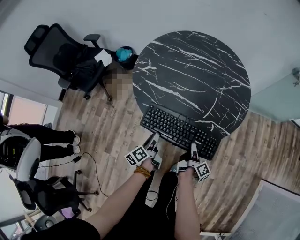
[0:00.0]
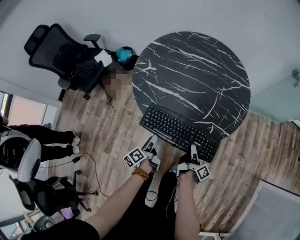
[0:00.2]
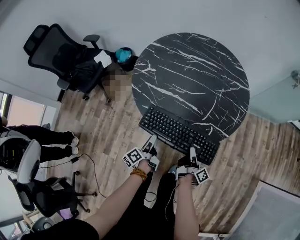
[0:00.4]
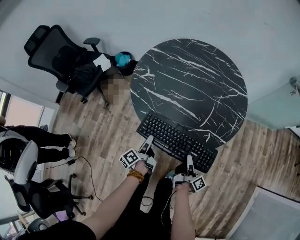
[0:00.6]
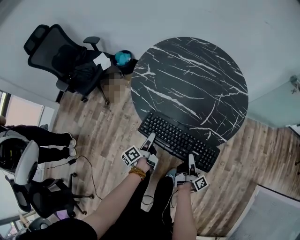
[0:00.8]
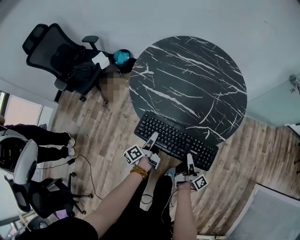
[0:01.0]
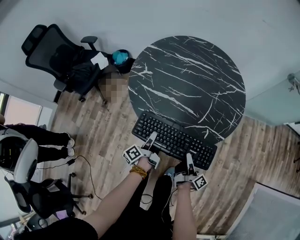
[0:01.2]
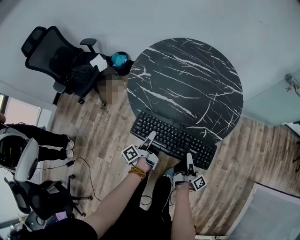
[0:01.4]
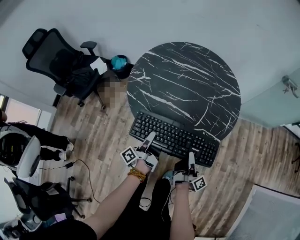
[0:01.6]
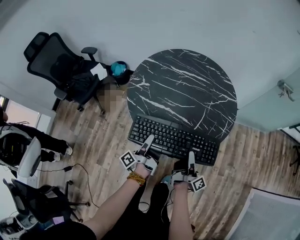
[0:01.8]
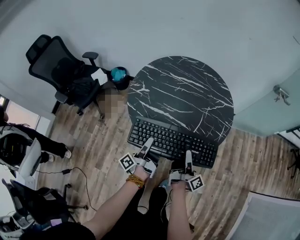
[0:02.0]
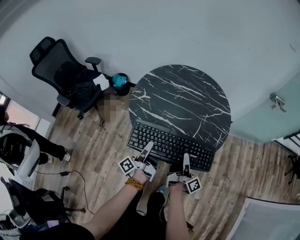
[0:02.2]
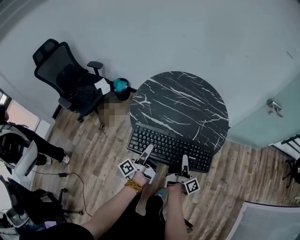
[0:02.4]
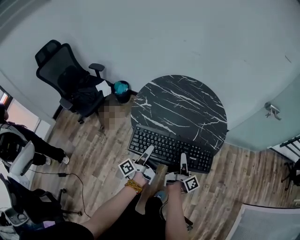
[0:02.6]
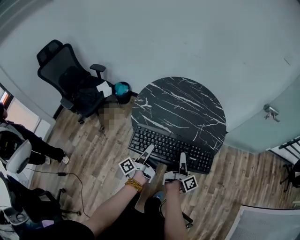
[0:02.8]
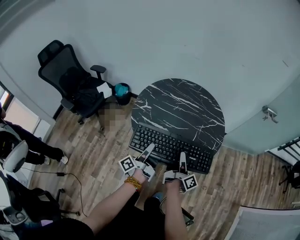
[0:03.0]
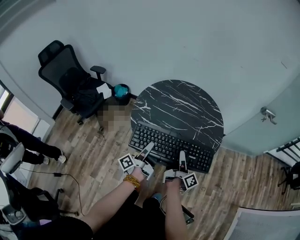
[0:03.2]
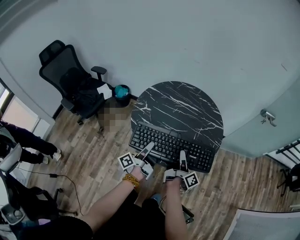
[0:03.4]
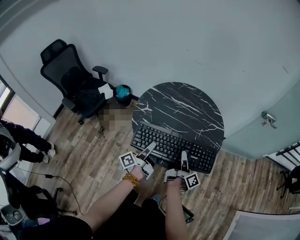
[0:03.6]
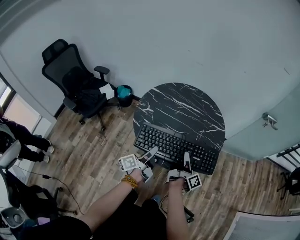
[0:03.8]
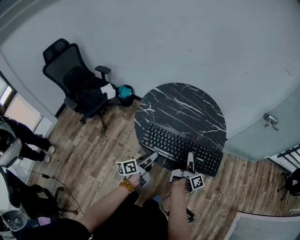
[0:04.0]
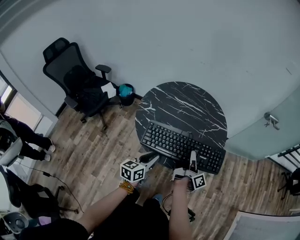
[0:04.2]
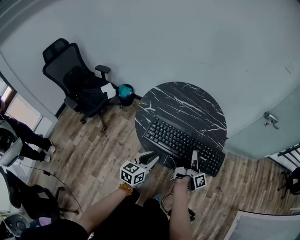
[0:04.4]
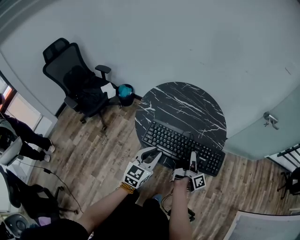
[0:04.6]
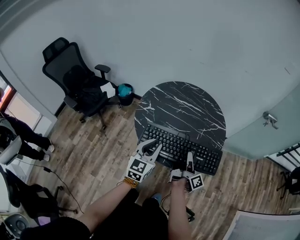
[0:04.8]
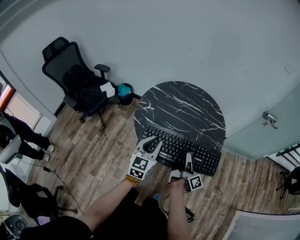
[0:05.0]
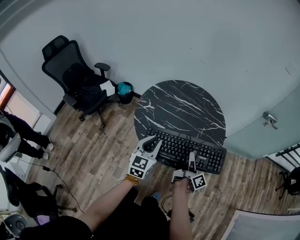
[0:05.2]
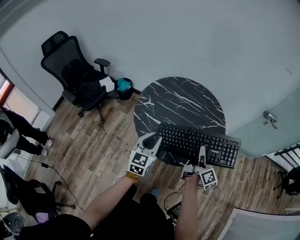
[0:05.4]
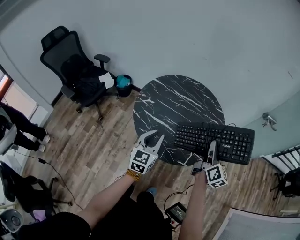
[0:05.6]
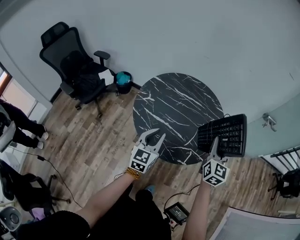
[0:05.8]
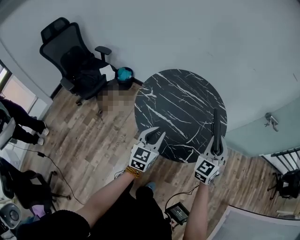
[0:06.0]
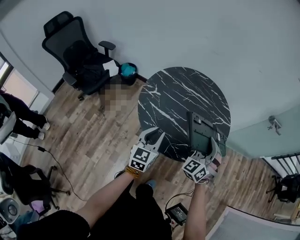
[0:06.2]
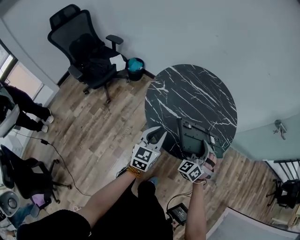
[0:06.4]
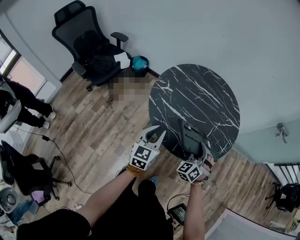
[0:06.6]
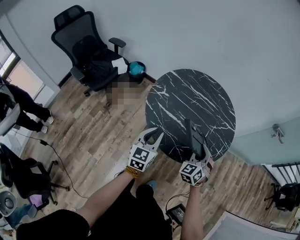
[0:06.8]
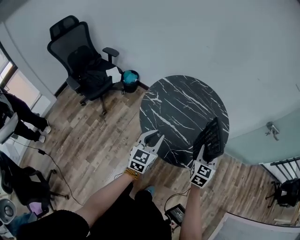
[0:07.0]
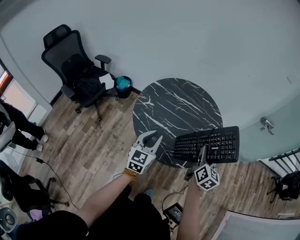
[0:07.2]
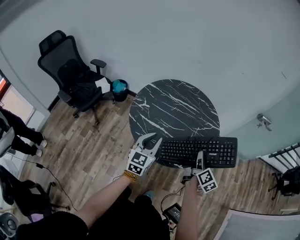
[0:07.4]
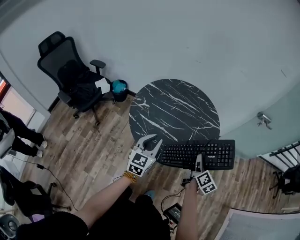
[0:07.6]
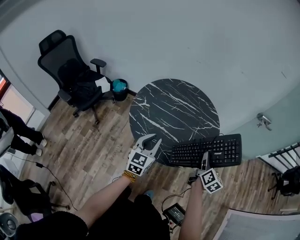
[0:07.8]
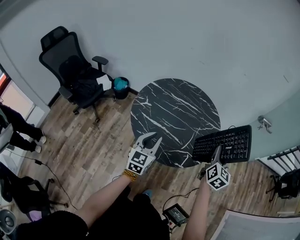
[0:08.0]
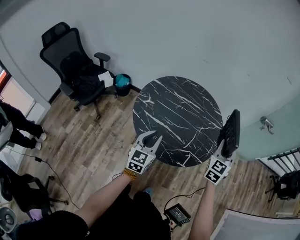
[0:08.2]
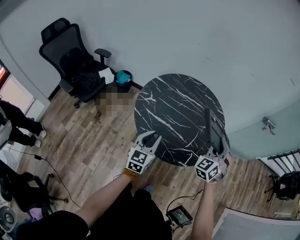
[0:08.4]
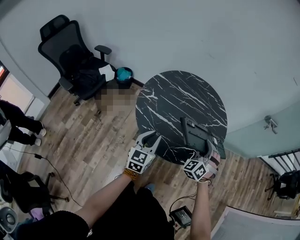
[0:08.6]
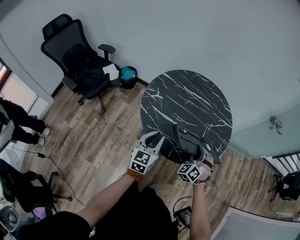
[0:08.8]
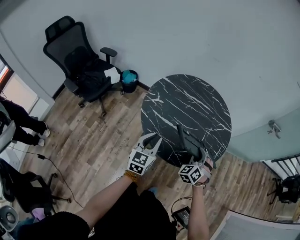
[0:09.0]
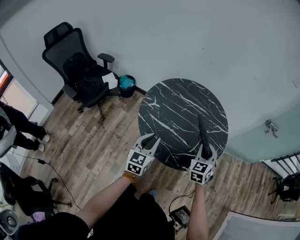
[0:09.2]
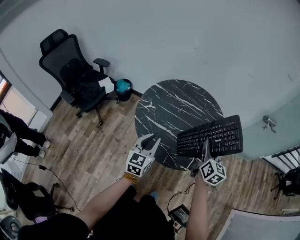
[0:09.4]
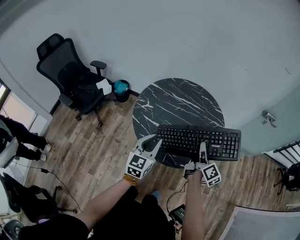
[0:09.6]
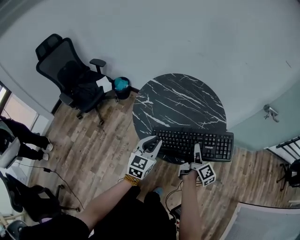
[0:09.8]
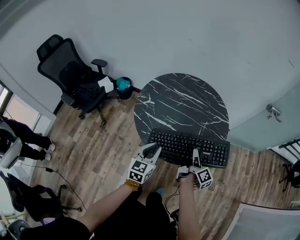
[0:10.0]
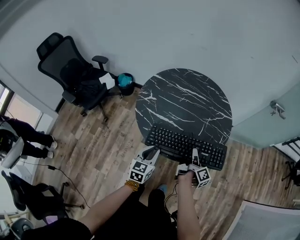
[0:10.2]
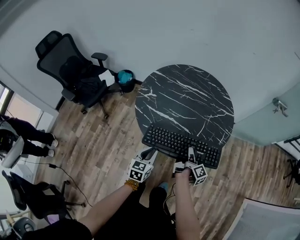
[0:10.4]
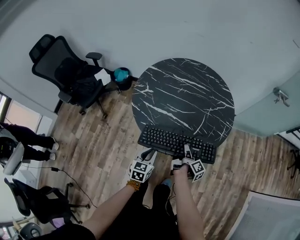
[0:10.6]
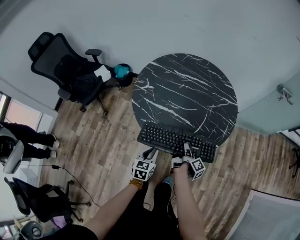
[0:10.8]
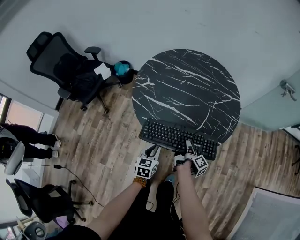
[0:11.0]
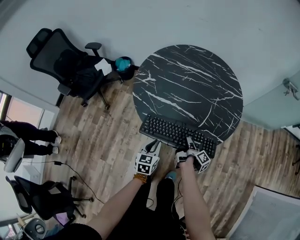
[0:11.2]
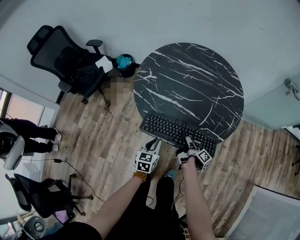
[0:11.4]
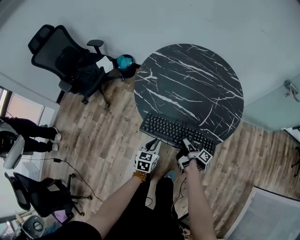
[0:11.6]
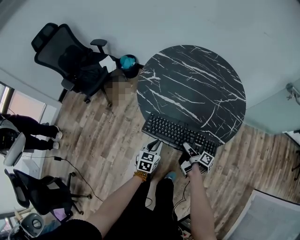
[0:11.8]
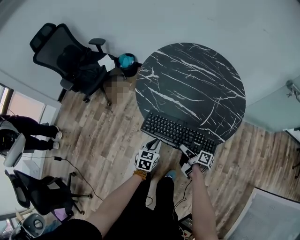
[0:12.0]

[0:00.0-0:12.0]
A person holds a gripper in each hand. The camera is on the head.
0:00.0 to 0:01.6: The grippers both shift upward by roughly 10 cm. The right gripper rotates roughly 30 degrees. The left gripper rotates some 40 degrees, and closes.
0:01.6 to 0:03.0: The left gripper travels upward by some 15 cm; the right gripper goes roughly 15 cm upward and forward.
0:03.0 to 0:04.4: The left gripper ends up roughly 5 cm from where it was, and twists approximately 60 degrees clockwise, seen from behind.
0:04.4 to 0:06.0: The left gripper moves forward, about 5 cm, and changes its angle by roughly 20 degrees. Meanwhile the right gripper goes about 15 cm upward, and rolls counterclockwise, seen from behind, by roughly 130 degrees.
0:06.0 to 0:07.6: The left gripper goes to the left and returns, some 5 cm each way, while the right gripper goes up and down, some 15 cm each way, reversing 2 times, and rotates around the line of its fingers by about 80 degrees, clockwise from behind.
0:07.6 to 0:09.0: The right gripper shifts about 10 cm to the left, moves roughly 15 cm upward and comes back, and rotates around the line of its fingers by roughly 100 degrees, counterclockwise from behind. The left gripper is displaced to the left and downward by approximately 10 cm.
0:09.0 to 0:10.4: The right gripper shifts about 10 cm downward, and rotates around the line of its fingers by some 150 degrees, clockwise from behind; the left gripper goes approximately 15 cm downward, to the right and backward.
0:10.4 to 0:12.0: The grippers both shift downward by about 10 cm. The right gripper turns by about 50 degrees.

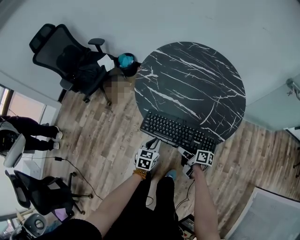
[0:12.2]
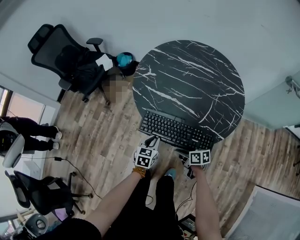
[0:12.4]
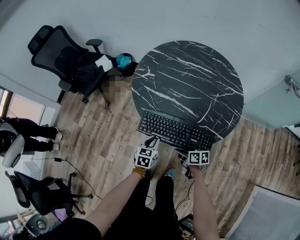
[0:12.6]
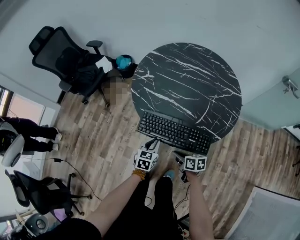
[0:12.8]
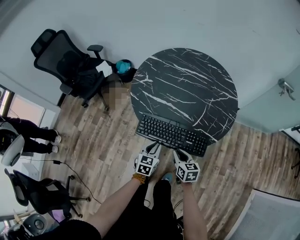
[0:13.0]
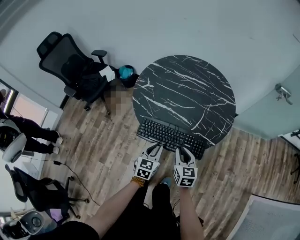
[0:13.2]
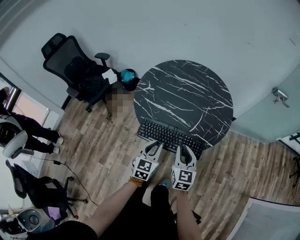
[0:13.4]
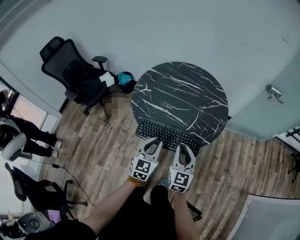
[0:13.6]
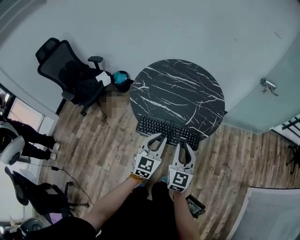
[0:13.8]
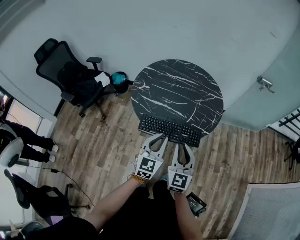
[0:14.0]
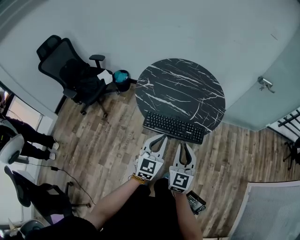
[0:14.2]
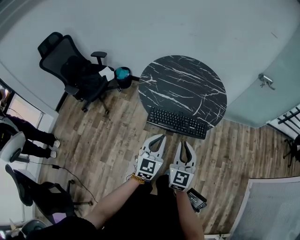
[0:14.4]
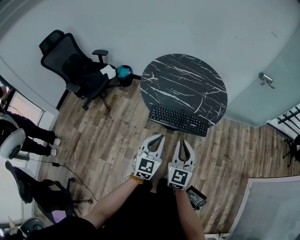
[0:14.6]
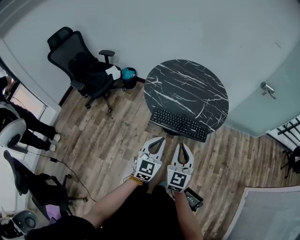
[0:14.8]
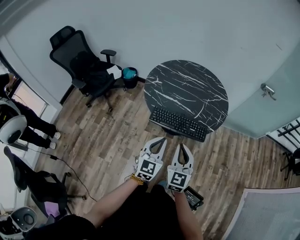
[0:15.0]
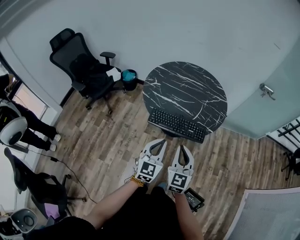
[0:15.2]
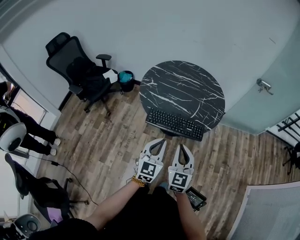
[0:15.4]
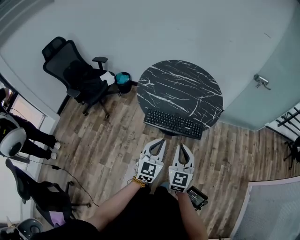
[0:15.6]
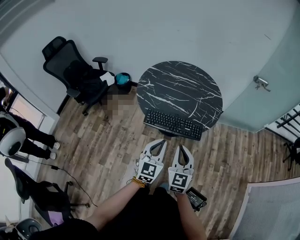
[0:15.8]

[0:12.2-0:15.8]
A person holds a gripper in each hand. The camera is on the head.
0:12.2 to 0:14.0: Both grippers travel together upward, about 30 cm. The left gripper angles its fingers upward, by about 30 degrees; the right gripper turns by about 90 degrees.
0:14.0 to 0:15.8: Both grippers move backward, approximately 10 cm.

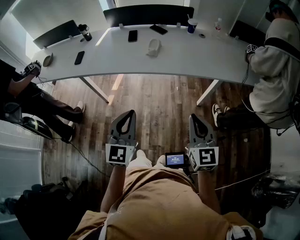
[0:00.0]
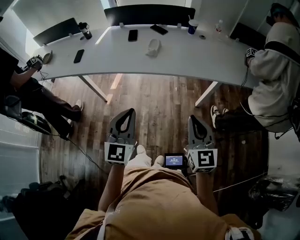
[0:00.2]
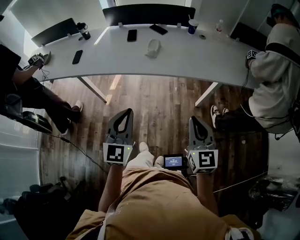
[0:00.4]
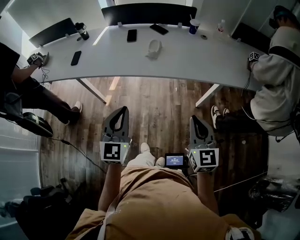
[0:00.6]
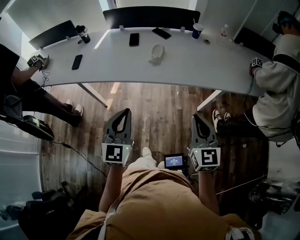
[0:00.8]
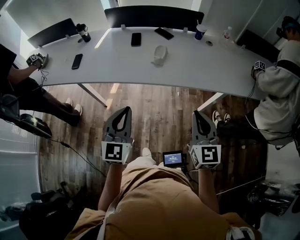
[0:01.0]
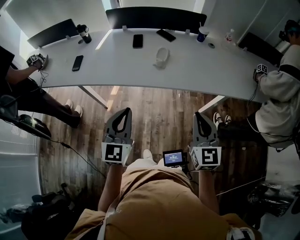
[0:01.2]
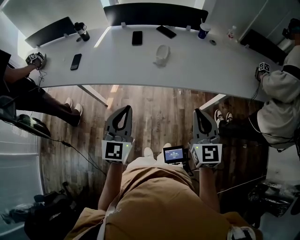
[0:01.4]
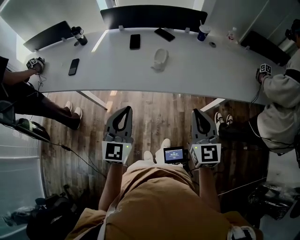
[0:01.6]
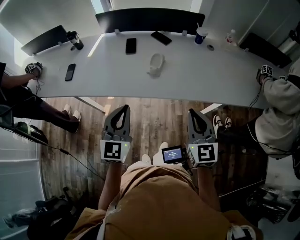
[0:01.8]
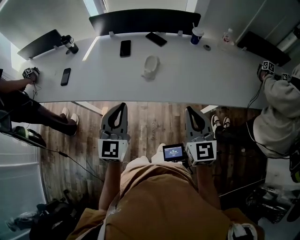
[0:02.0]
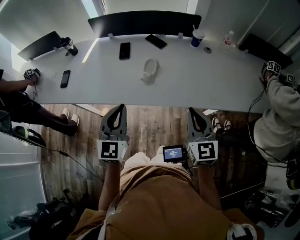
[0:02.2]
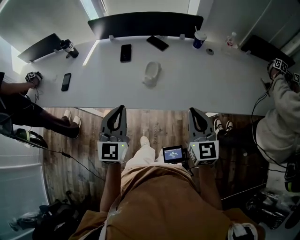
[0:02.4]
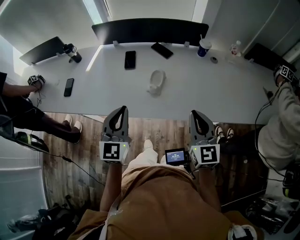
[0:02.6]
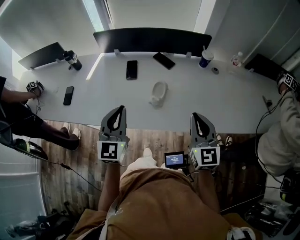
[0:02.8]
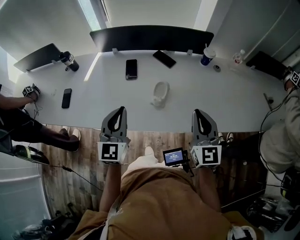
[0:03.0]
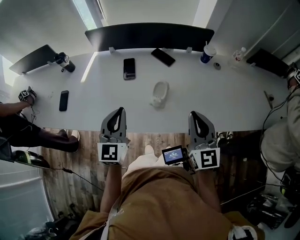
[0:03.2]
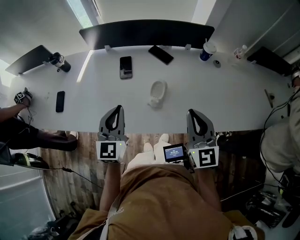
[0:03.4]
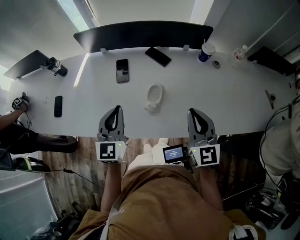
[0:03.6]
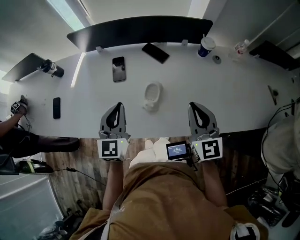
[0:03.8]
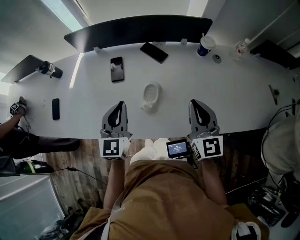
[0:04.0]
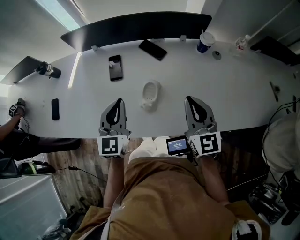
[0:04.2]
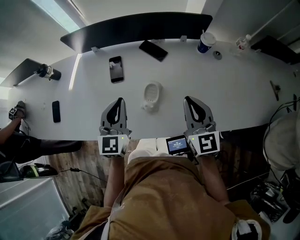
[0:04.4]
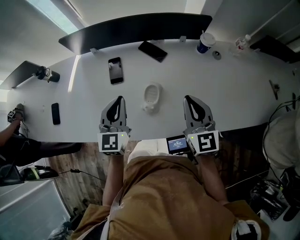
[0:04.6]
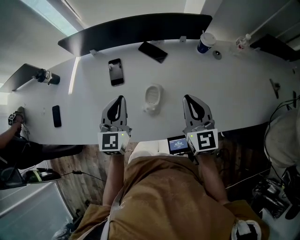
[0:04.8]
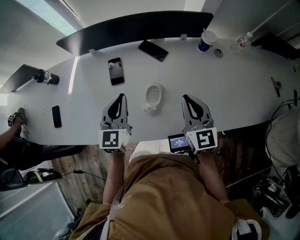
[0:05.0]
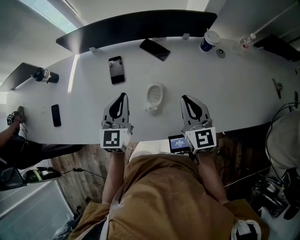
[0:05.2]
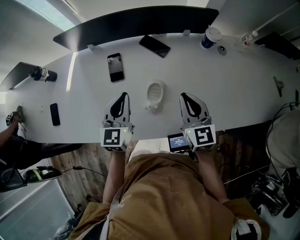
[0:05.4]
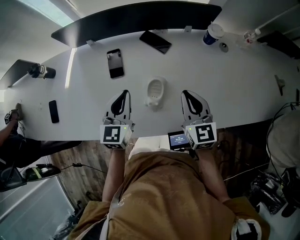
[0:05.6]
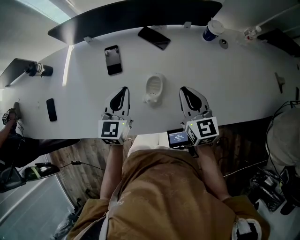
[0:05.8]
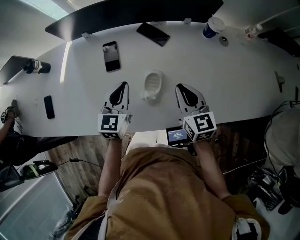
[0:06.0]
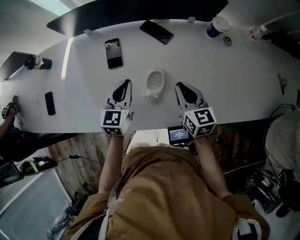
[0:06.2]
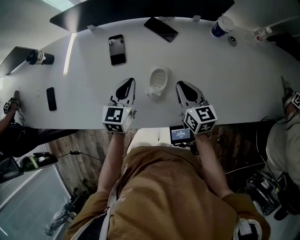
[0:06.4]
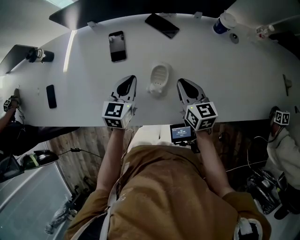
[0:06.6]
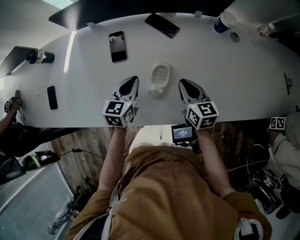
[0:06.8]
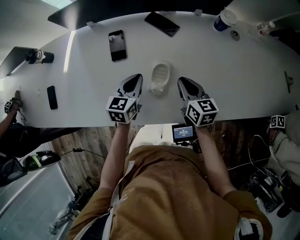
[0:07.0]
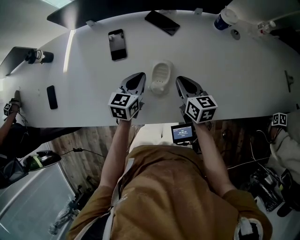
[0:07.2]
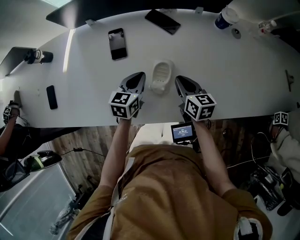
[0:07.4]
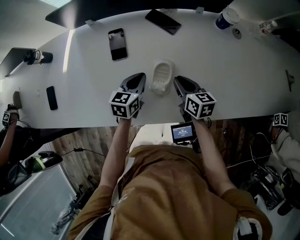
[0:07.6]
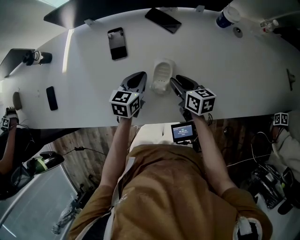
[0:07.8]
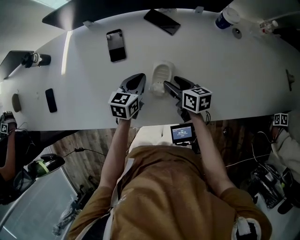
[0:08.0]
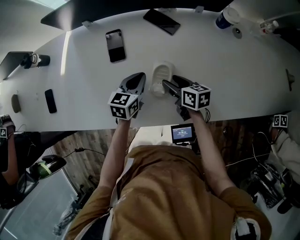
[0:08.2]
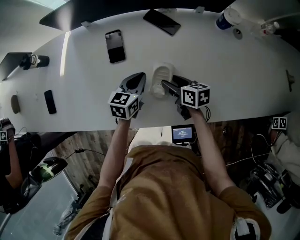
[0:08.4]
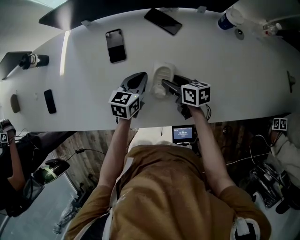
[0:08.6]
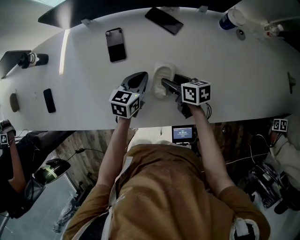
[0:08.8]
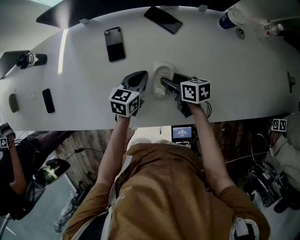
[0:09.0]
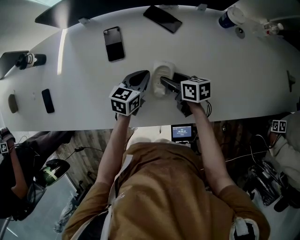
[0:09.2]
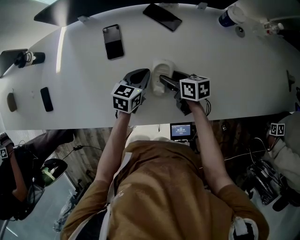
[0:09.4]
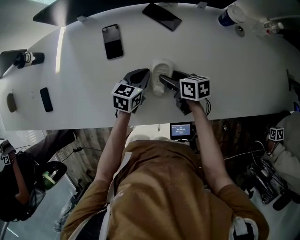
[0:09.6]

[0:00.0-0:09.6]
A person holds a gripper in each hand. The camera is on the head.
0:00.0 to 0:01.6: The grippers both shift forward by about 20 cm.
0:01.6 to 0:03.2: The grippers both shift forward by some 25 cm.
0:03.2 to 0:04.8: The right gripper is displaced forward and downward by approximately 15 cm, while the left gripper goes roughly 15 cm forward.
0:04.8 to 0:06.4: The grippers both shift downward by some 10 cm. The right gripper changes its angle by approximately 30 degrees.
0:06.4 to 0:08.0: Both grippers move downward, about 10 cm. The right gripper changes its angle by about 30 degrees, and opens up.
0:08.0 to 0:09.6: The grippers move only a little.
